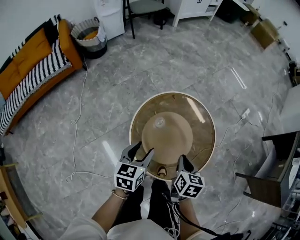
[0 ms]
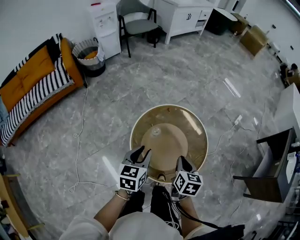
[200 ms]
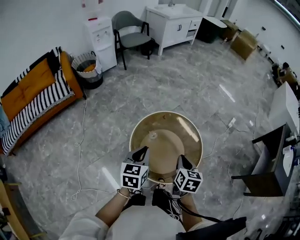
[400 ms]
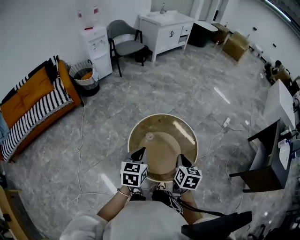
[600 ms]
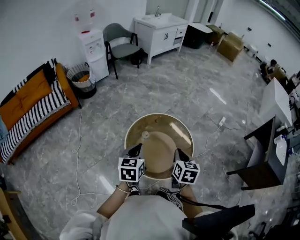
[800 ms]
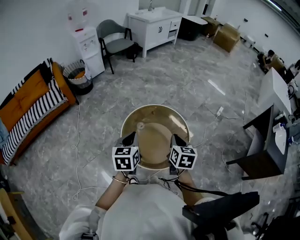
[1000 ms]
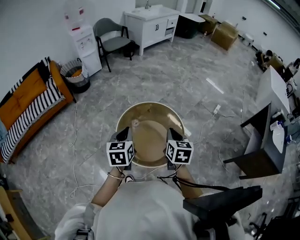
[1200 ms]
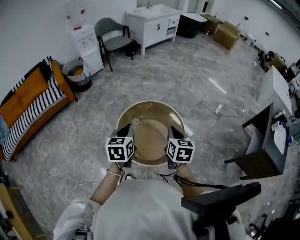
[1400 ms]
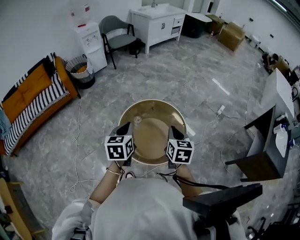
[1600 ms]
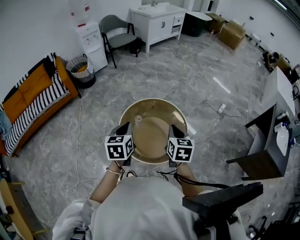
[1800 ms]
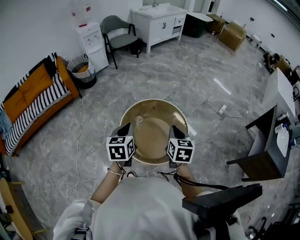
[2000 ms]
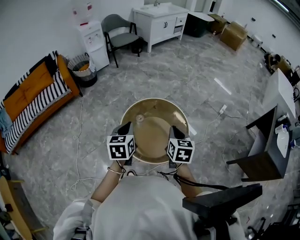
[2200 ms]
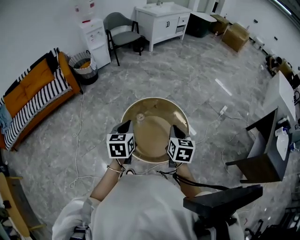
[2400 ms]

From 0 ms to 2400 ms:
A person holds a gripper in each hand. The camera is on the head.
From 0 ms to 1200 ms: Both grippers move upward, approximately 20 cm. The left gripper closes its fingers.
From 1200 ms to 2400 ms: There are only small adjustments of the grippers.

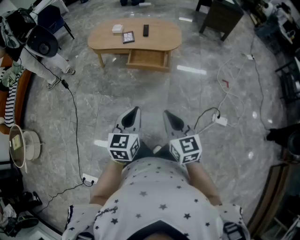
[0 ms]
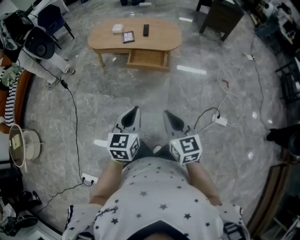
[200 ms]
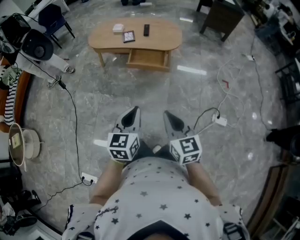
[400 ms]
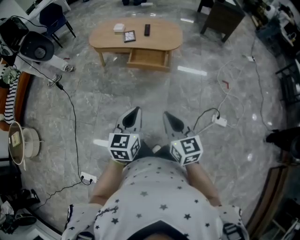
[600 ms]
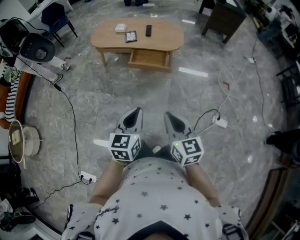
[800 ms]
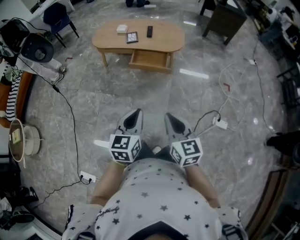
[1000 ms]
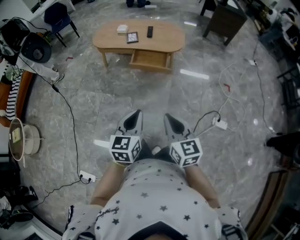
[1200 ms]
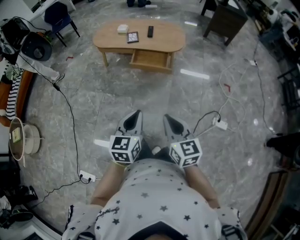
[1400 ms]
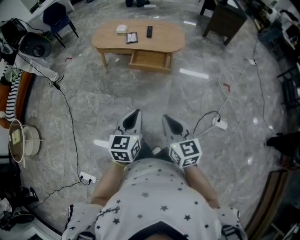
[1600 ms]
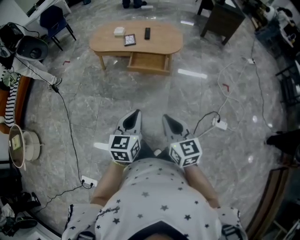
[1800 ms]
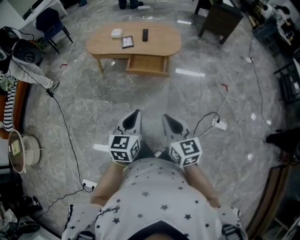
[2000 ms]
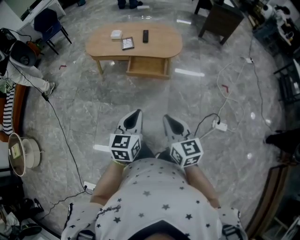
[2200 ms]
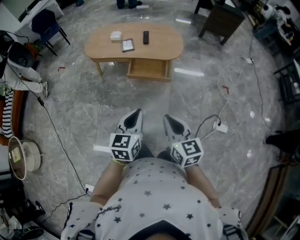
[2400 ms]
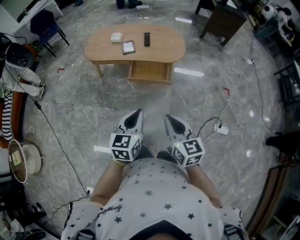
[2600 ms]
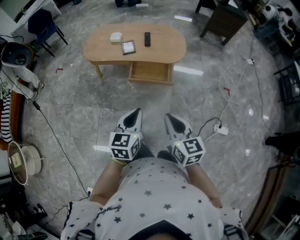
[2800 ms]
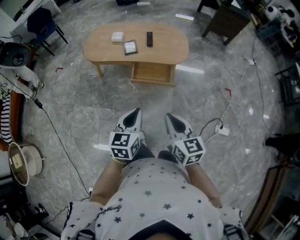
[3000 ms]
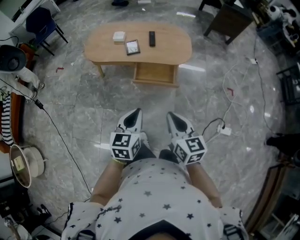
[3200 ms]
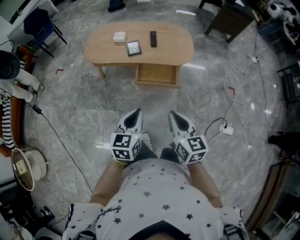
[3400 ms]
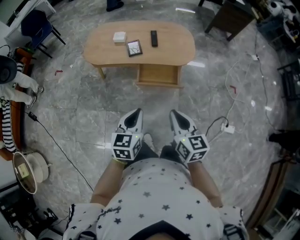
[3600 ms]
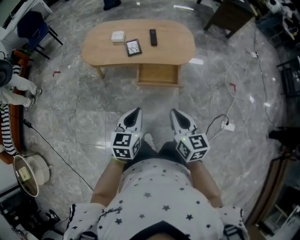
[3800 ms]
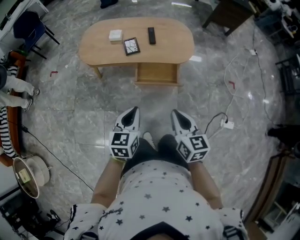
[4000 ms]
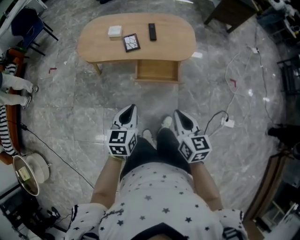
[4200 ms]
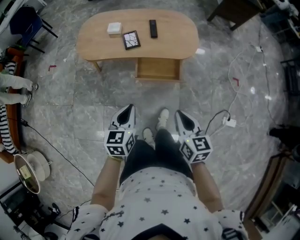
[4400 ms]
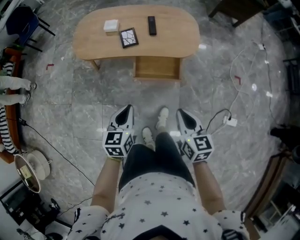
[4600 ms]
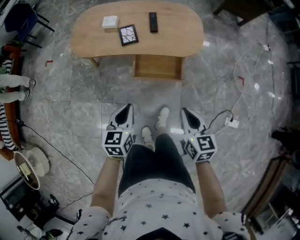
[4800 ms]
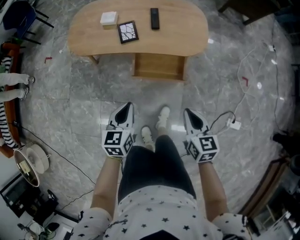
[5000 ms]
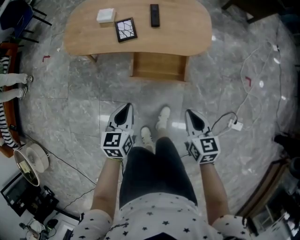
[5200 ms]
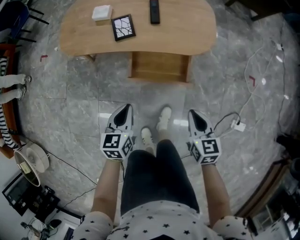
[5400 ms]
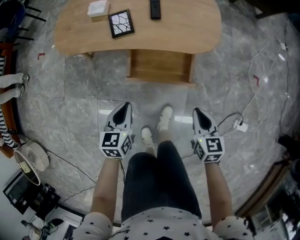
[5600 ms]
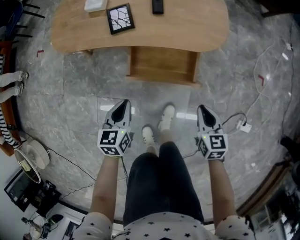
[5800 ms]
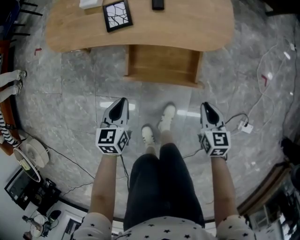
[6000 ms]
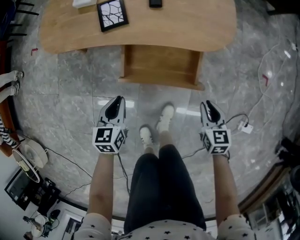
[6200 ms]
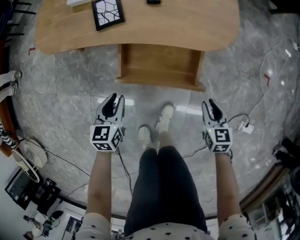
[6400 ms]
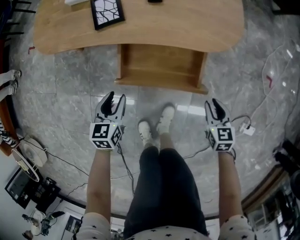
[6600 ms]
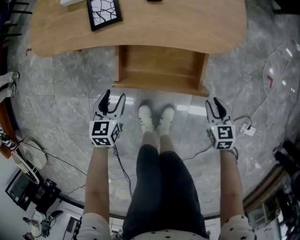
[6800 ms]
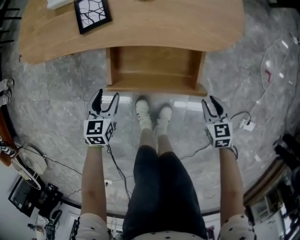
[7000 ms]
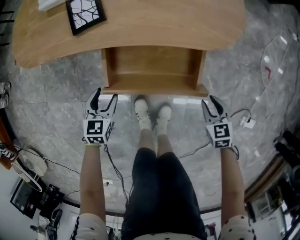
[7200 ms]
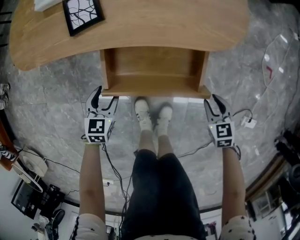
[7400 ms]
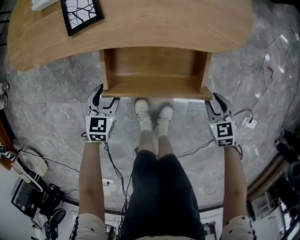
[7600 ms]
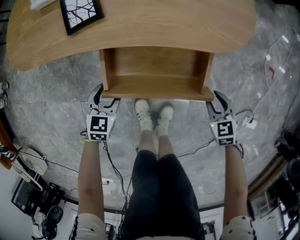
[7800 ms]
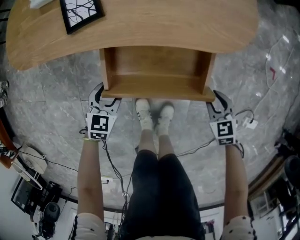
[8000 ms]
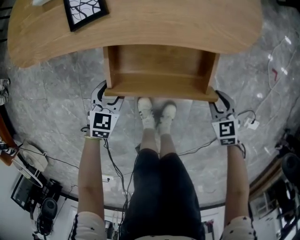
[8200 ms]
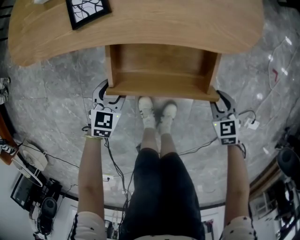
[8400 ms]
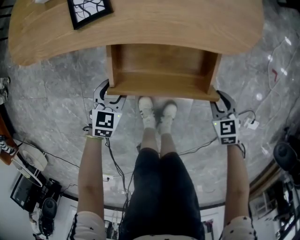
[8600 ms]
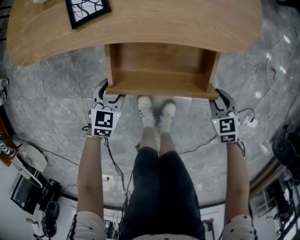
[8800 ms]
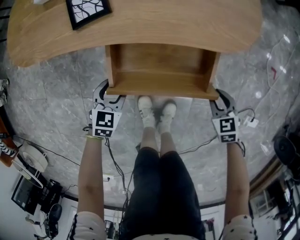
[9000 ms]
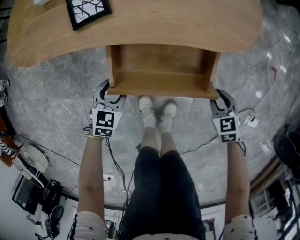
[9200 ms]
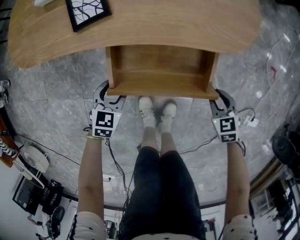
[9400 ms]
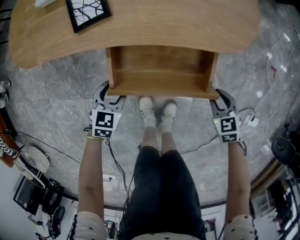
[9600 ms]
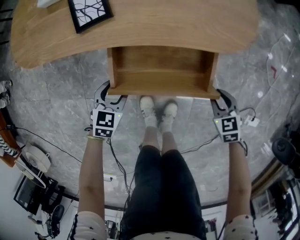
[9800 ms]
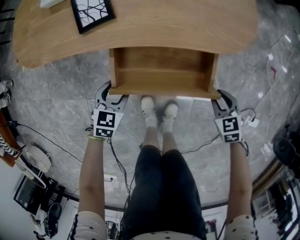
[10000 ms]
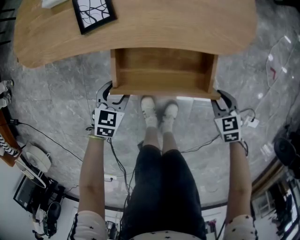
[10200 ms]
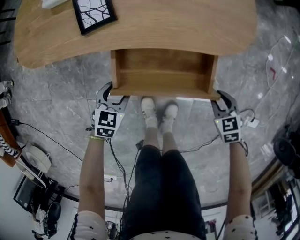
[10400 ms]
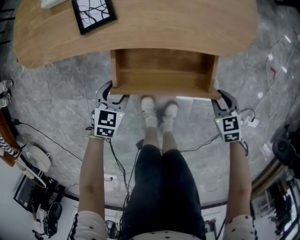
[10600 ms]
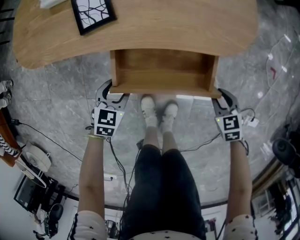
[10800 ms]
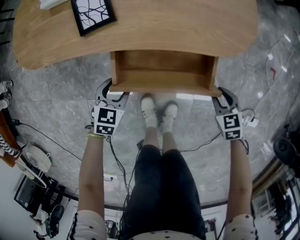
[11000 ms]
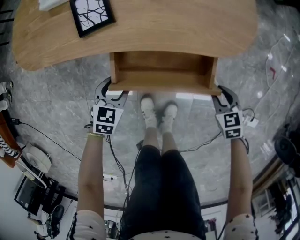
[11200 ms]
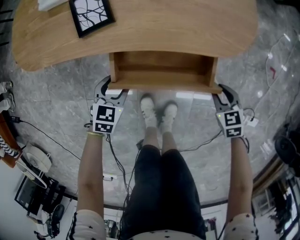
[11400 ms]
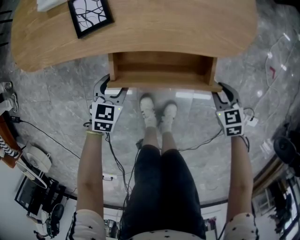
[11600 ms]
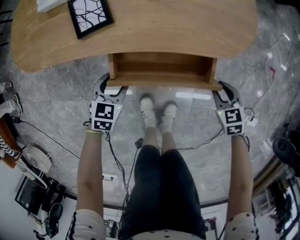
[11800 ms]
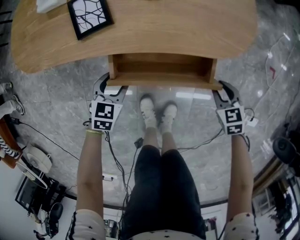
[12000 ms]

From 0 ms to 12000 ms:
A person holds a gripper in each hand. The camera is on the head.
From 0 ms to 1600 ms: The grippers stay close to where they were, moving slightly.
From 1600 ms to 3000 ms: Both grippers move forward, roughly 20 cm.
From 3000 ms to 4400 ms: The left gripper shifts some 20 cm forward, to the left and downward. The right gripper moves forward and downward, roughly 15 cm.
From 4400 ms to 6000 ms: The left gripper travels downward and forward by about 30 cm; the right gripper heads downward, forward and to the right, covering approximately 40 cm.
From 6000 ms to 7600 ms: Both grippers travel together downward, about 20 cm. The right gripper rotates approximately 20 degrees, and opens its fingers; the left gripper swivels about 20 degrees, and opens its fingers.
From 7600 ms to 10400 ms: The grippers stay close to where they were, moving slightly.
From 10400 ms to 12000 ms: The right gripper is displaced forward by about 5 cm.

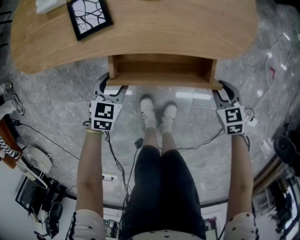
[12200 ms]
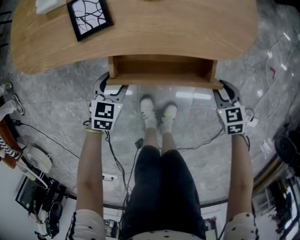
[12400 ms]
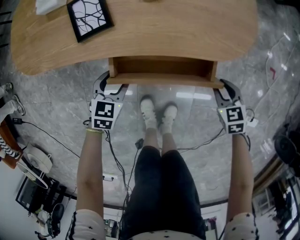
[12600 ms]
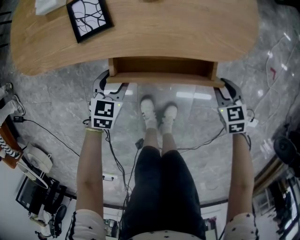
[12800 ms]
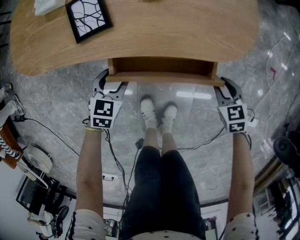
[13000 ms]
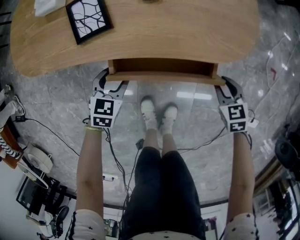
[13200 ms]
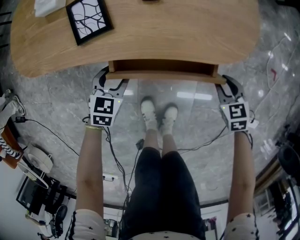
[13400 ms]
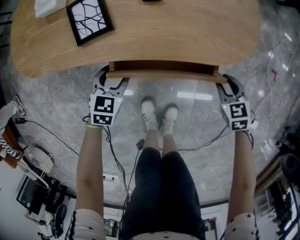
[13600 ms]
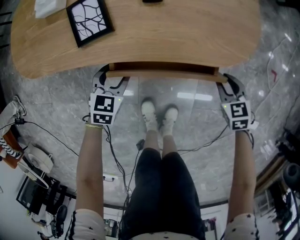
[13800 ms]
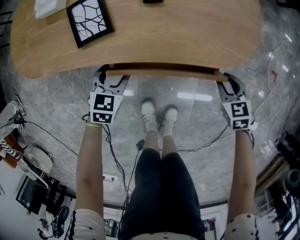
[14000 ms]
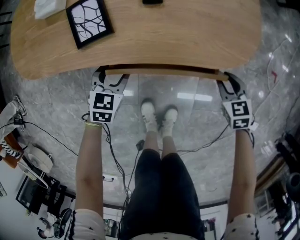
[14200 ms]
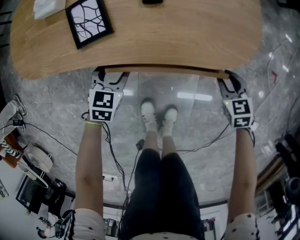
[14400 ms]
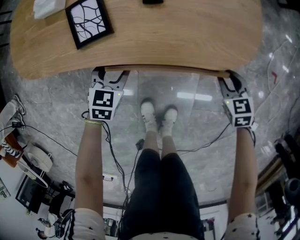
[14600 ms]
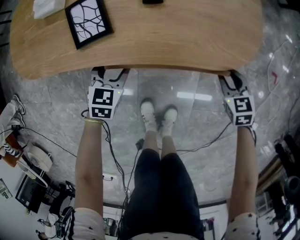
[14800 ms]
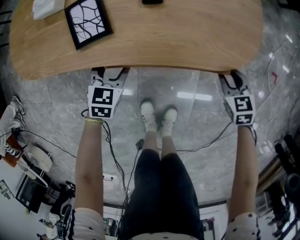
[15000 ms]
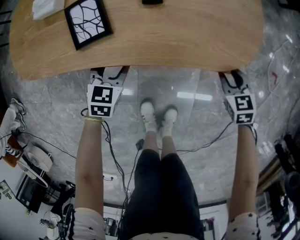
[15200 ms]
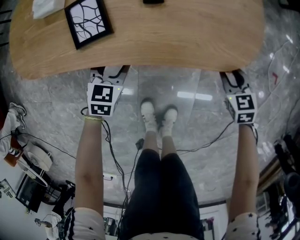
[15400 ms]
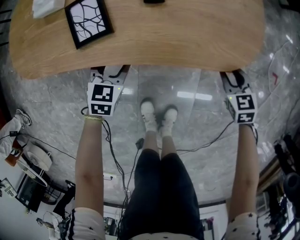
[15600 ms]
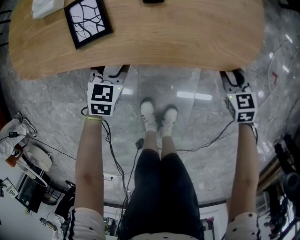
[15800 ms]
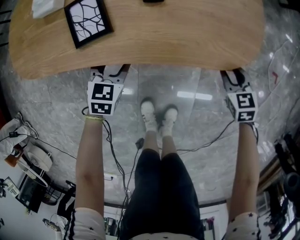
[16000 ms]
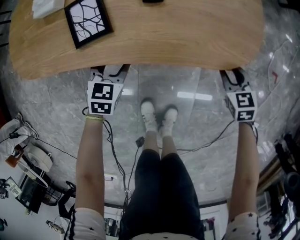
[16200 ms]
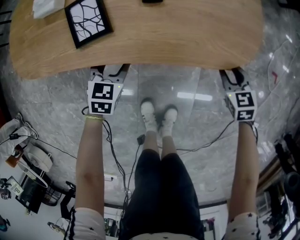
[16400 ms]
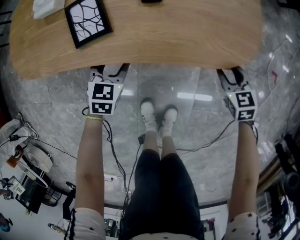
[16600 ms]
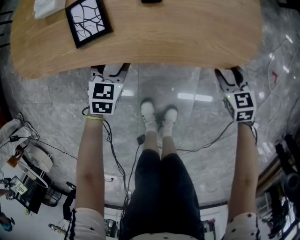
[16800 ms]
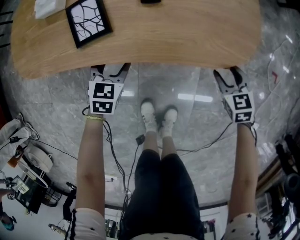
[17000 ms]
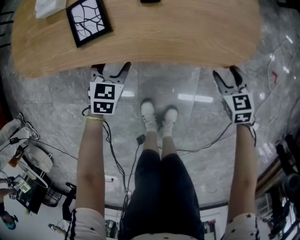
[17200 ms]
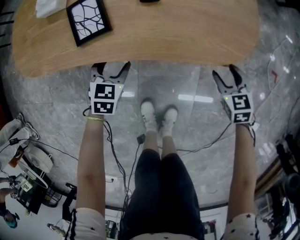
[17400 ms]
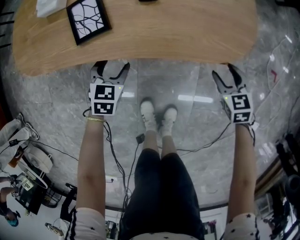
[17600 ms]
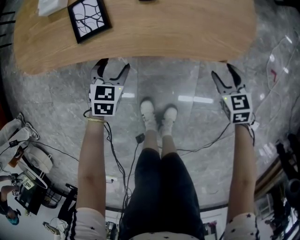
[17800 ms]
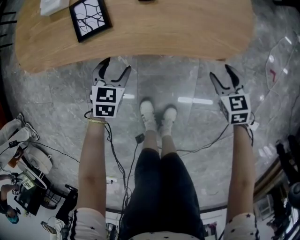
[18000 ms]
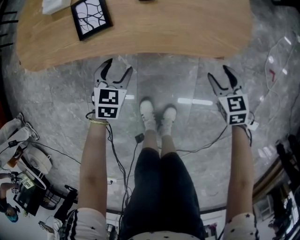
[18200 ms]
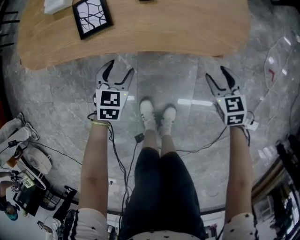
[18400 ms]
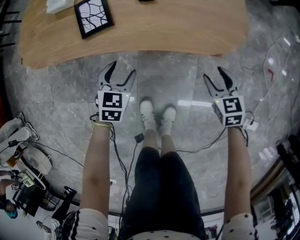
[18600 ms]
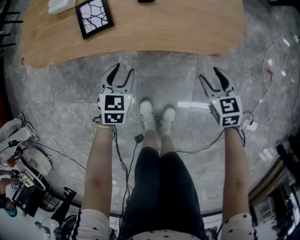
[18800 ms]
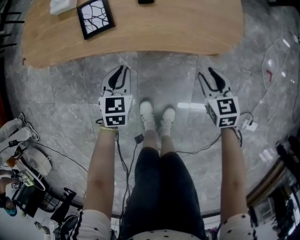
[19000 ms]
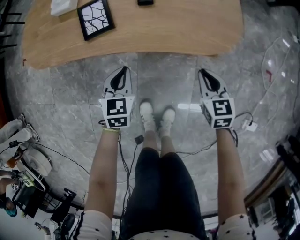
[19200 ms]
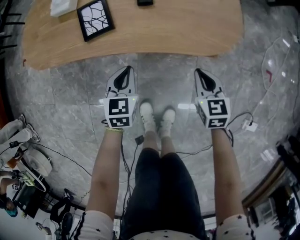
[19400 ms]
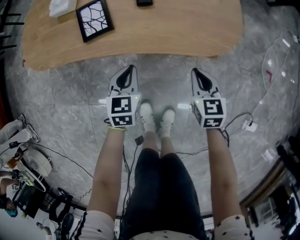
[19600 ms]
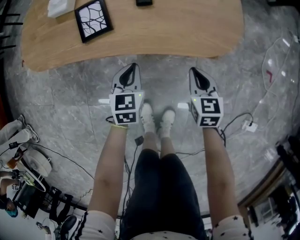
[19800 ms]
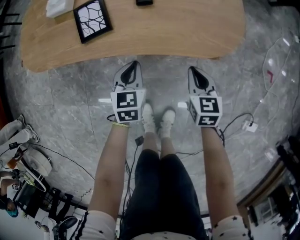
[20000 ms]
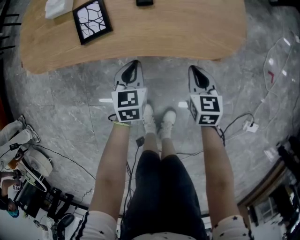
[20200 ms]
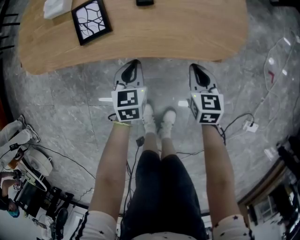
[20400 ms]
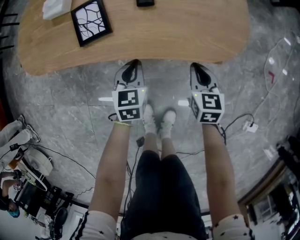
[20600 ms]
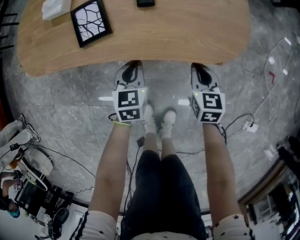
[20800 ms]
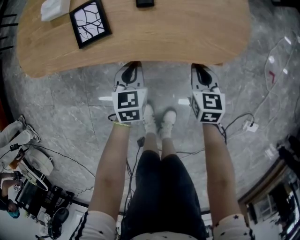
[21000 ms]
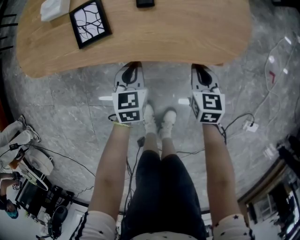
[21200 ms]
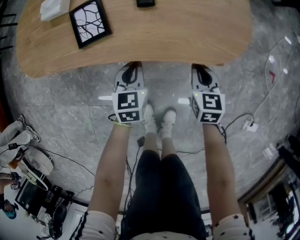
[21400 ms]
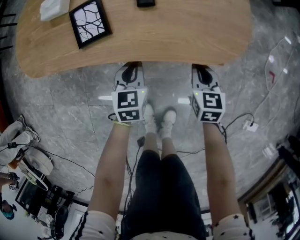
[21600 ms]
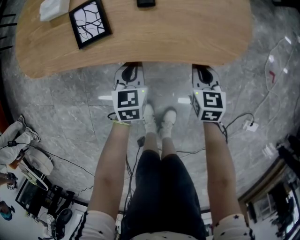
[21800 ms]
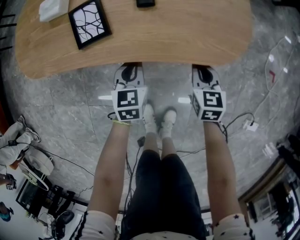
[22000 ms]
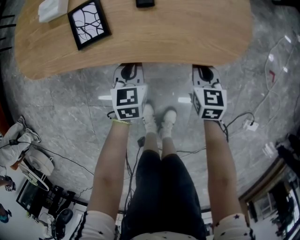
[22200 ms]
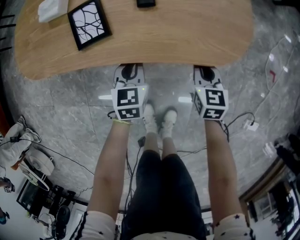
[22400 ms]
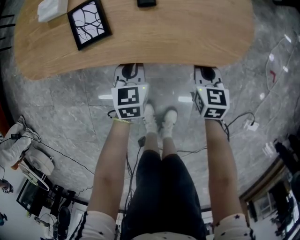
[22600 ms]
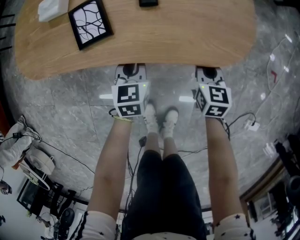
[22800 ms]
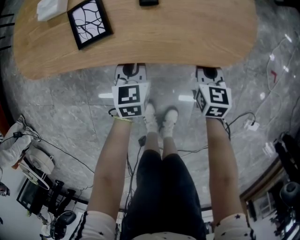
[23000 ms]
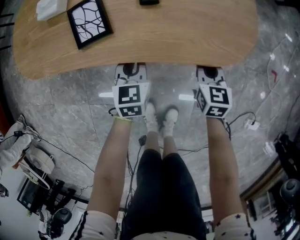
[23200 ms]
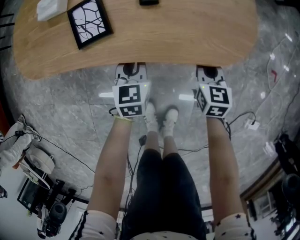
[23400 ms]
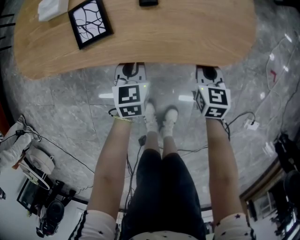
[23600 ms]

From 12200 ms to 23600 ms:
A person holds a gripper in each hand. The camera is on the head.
From 12200 ms to 13600 ms: The grippers make only small movements.
From 13600 ms to 15000 ms: The grippers move only a little.
From 15000 ms to 16400 ms: Both grippers stay put.
From 16400 ms to 17800 ms: The right gripper opens its fingers.
From 17800 ms to 19400 ms: The right gripper travels to the left and upward by approximately 10 cm, and closes up. Meanwhile the left gripper shifts some 5 cm upward, and closes its fingers.
From 19400 ms to 20800 ms: The left gripper ends up some 5 cm from where it was. Meanwhile the right gripper shifts by roughly 5 cm.
From 20800 ms to 23600 ms: The grippers make only small movements.
